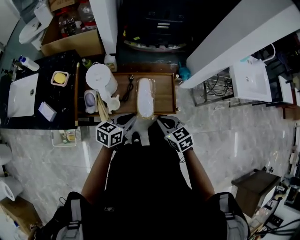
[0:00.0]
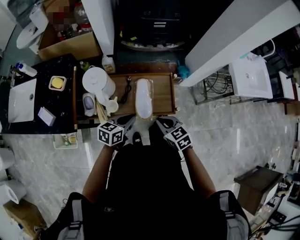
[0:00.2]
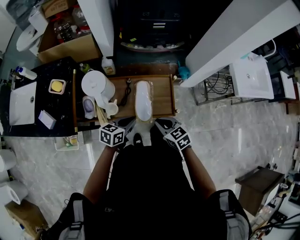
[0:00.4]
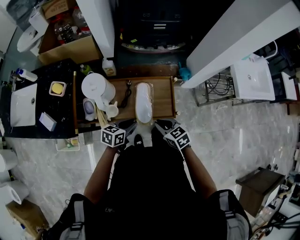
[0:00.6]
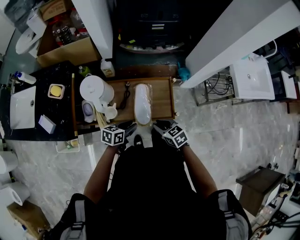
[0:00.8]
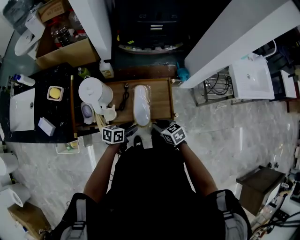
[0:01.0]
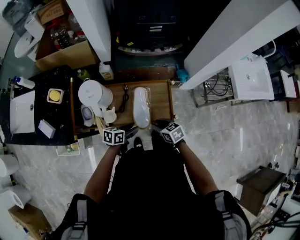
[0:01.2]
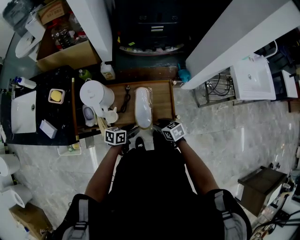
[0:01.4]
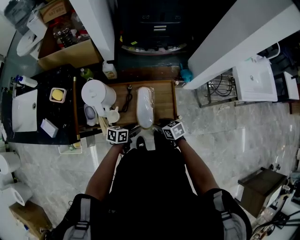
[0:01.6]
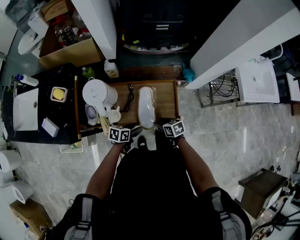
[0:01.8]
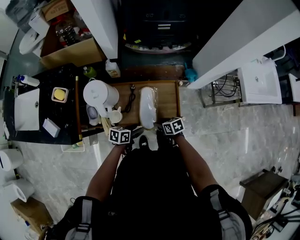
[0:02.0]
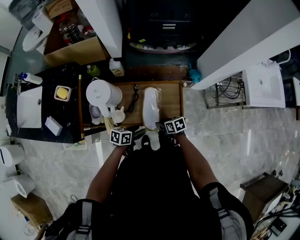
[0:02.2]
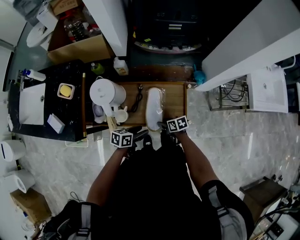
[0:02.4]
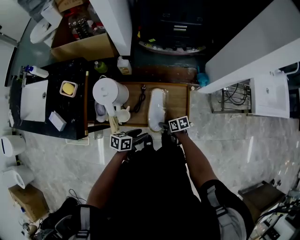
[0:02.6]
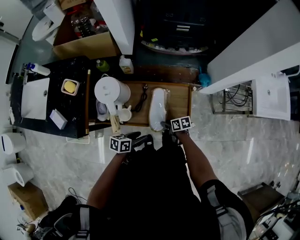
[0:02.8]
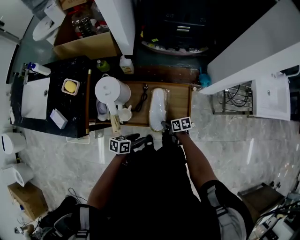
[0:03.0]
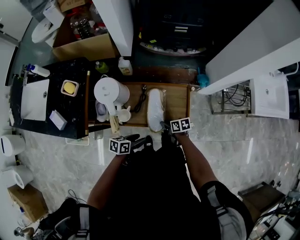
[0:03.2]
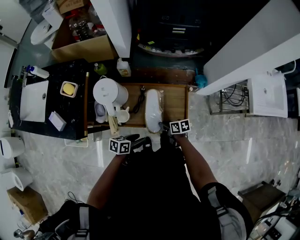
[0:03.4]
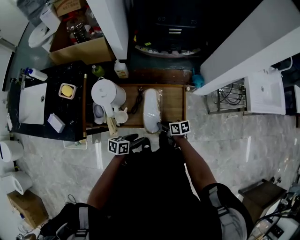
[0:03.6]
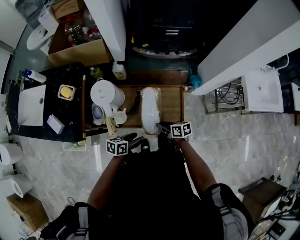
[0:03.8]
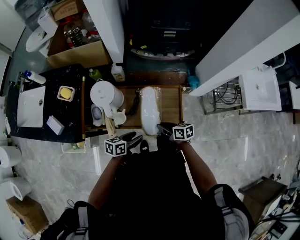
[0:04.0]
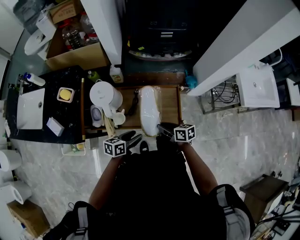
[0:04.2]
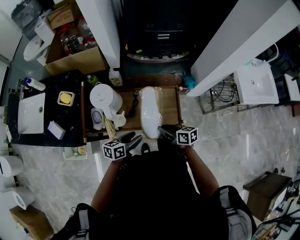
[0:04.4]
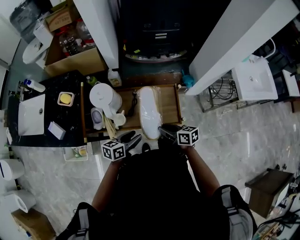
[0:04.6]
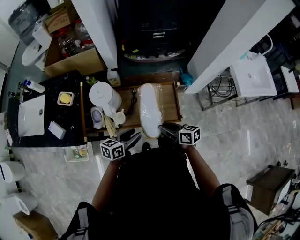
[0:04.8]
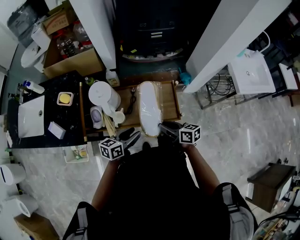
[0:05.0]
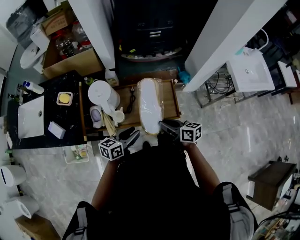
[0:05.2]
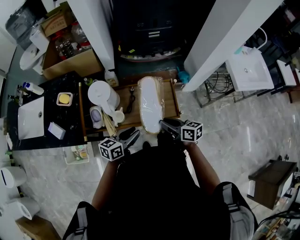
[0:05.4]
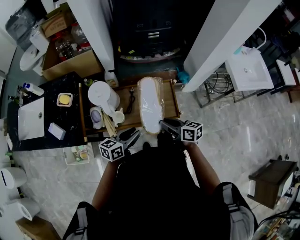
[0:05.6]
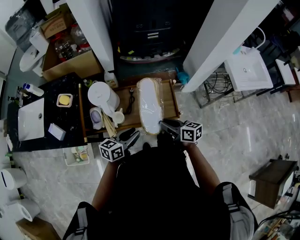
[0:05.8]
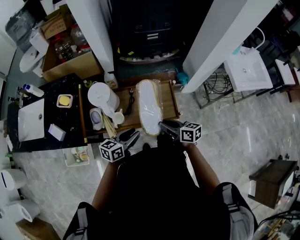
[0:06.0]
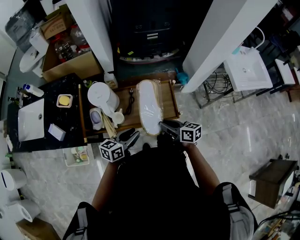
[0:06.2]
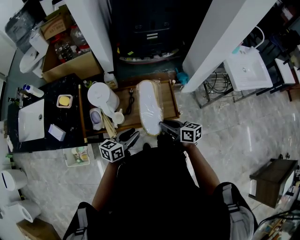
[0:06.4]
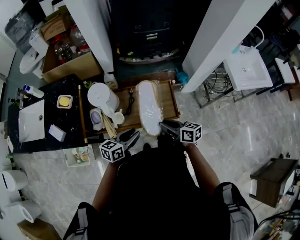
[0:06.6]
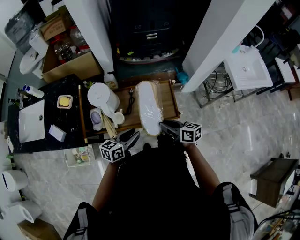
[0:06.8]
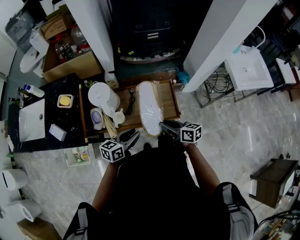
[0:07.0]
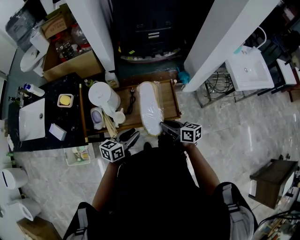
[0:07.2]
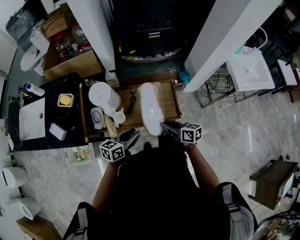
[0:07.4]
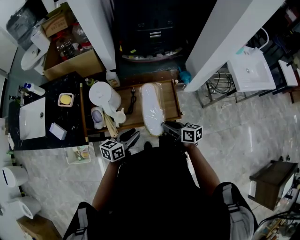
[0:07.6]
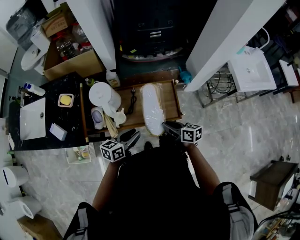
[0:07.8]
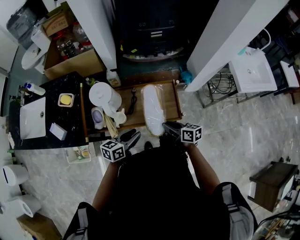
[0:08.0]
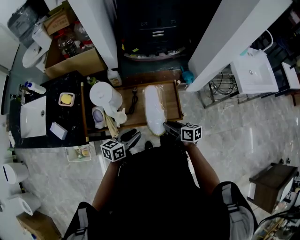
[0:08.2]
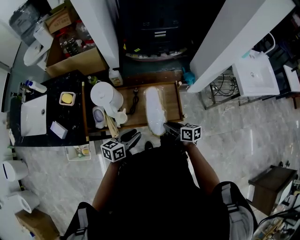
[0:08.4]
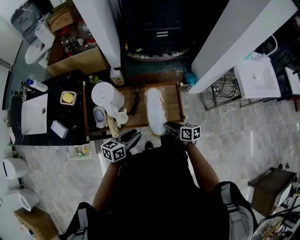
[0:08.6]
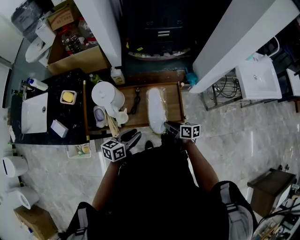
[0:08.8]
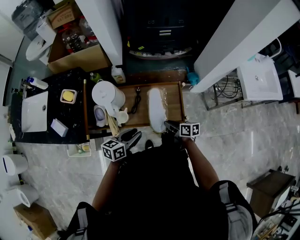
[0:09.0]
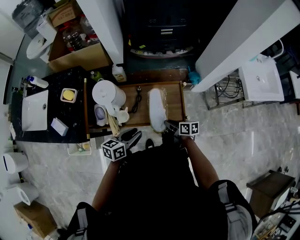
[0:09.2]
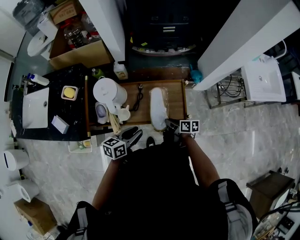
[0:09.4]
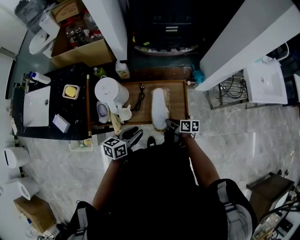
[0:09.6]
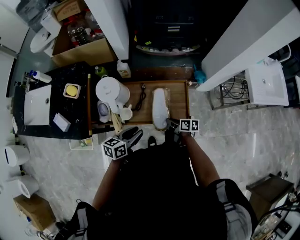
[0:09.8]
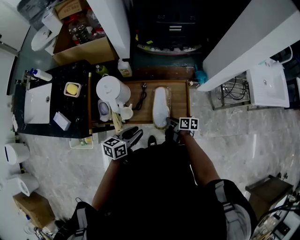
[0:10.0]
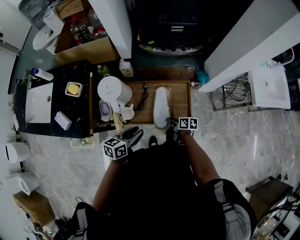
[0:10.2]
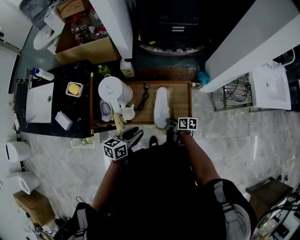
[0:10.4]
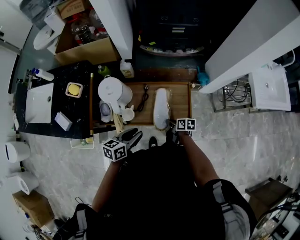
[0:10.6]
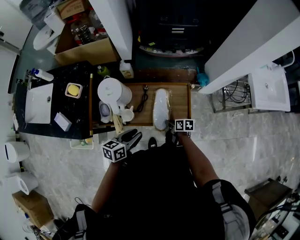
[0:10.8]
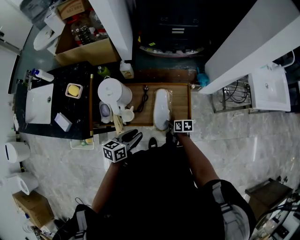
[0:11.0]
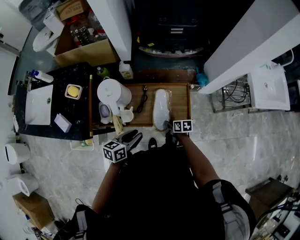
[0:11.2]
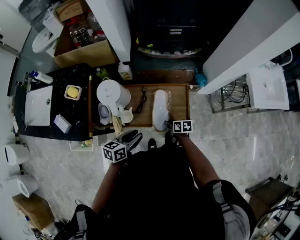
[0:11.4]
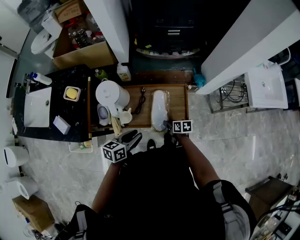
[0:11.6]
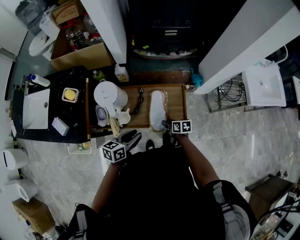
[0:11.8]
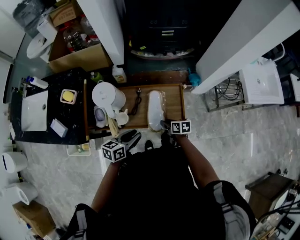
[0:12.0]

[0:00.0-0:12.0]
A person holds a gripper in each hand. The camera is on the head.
0:00.0 to 0:01.6: The grippers both shift downward by about 15 cm. The left gripper changes its angle by some 20 degrees, and opens. The right gripper rotates approximately 20 degrees, and opens its fingers.
0:01.6 to 0:03.0: The left gripper shifts by approximately 5 cm. The right gripper is displaced downward by approximately 10 cm, and turns by roughly 20 degrees.
0:03.0 to 0:04.4: The left gripper heads upward, covering roughly 10 cm. The right gripper moves upward, approximately 15 cm, and changes its angle by roughly 30 degrees.
0:04.4 to 0:06.0: The grippers both shift upward by approximately 5 cm. The left gripper closes.
0:06.0 to 0:07.6: There are only small adjustments of the grippers.
0:07.6 to 0:09.0: The right gripper heads downward, covering approximately 10 cm.
0:09.0 to 0:10.4: The right gripper shifts roughly 10 cm downward.
0:10.4 to 0:12.0: The right gripper opens its fingers.

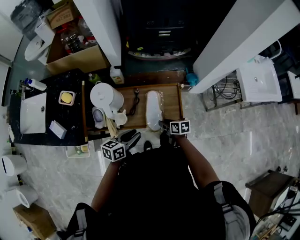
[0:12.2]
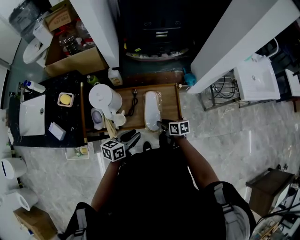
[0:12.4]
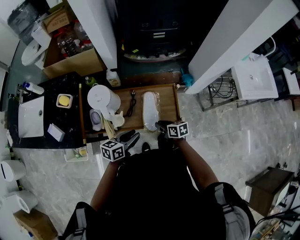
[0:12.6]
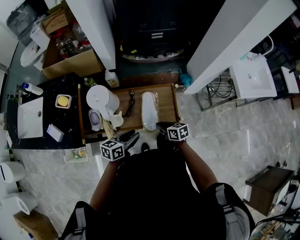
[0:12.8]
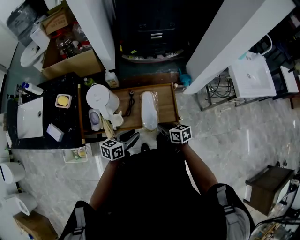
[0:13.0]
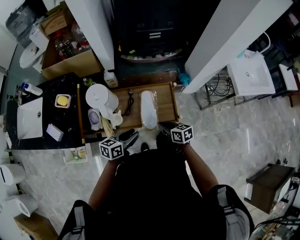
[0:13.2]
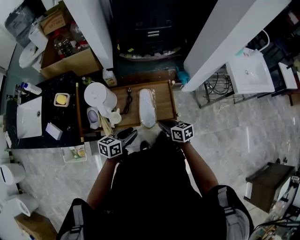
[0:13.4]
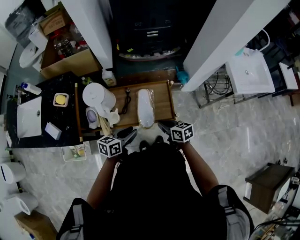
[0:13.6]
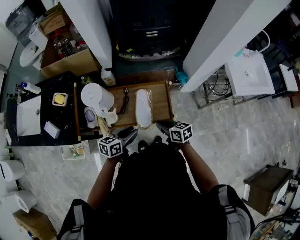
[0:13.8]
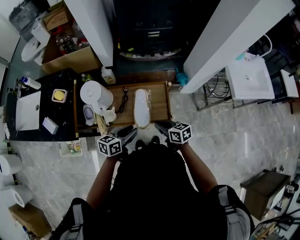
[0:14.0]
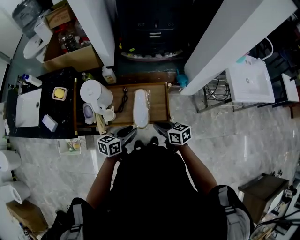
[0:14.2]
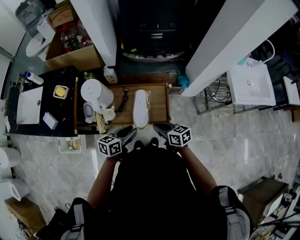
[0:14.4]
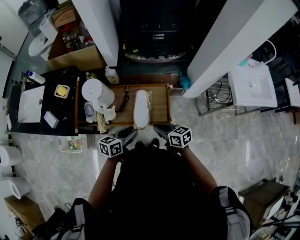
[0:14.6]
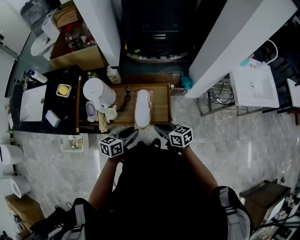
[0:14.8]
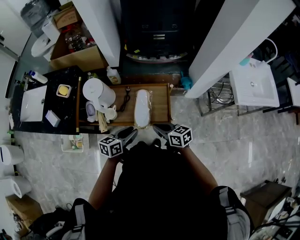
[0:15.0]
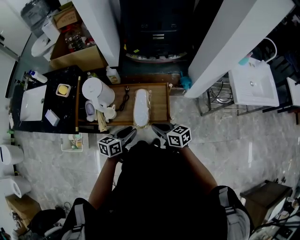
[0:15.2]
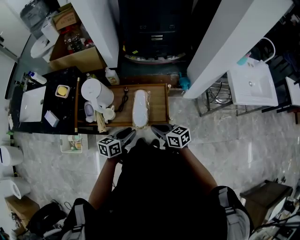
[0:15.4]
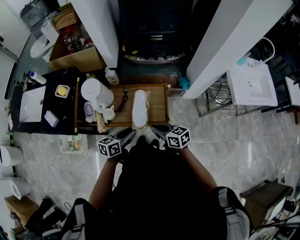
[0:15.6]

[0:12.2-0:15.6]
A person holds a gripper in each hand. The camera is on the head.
0:12.2 to 0:13.8: The right gripper is displaced upward by about 10 cm, and closes.
0:13.8 to 0:15.6: The grippers make only small movements.

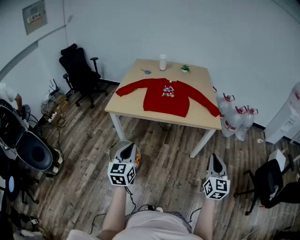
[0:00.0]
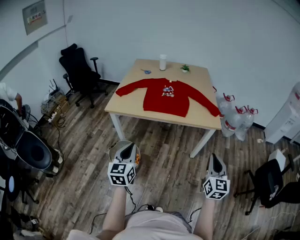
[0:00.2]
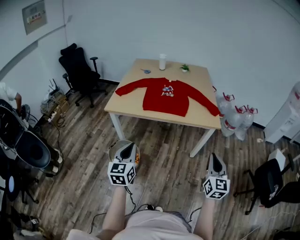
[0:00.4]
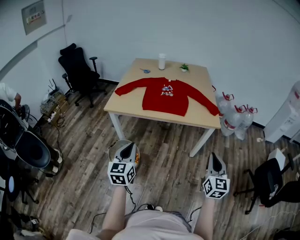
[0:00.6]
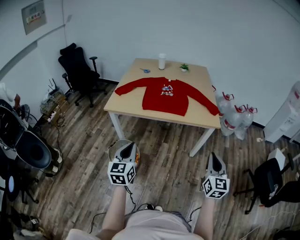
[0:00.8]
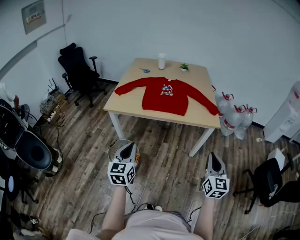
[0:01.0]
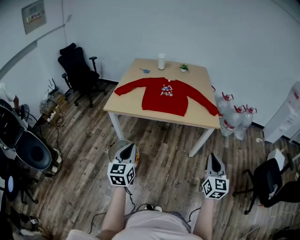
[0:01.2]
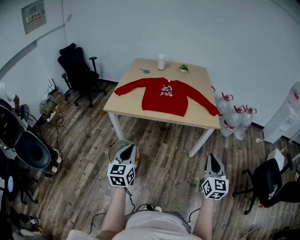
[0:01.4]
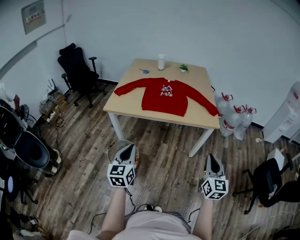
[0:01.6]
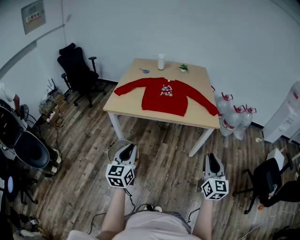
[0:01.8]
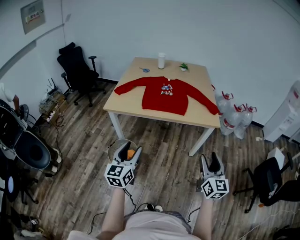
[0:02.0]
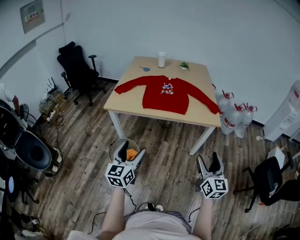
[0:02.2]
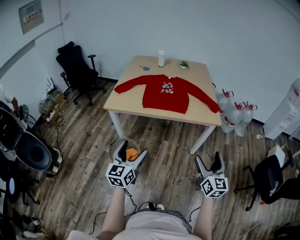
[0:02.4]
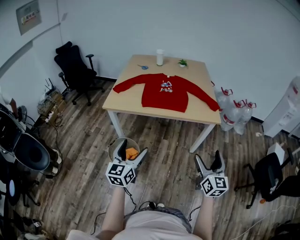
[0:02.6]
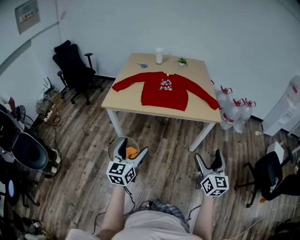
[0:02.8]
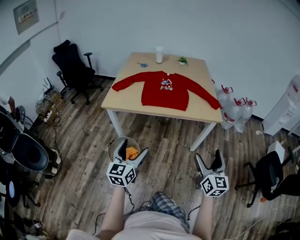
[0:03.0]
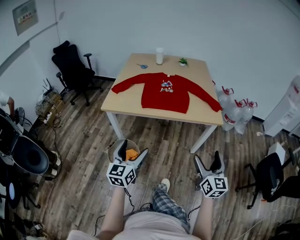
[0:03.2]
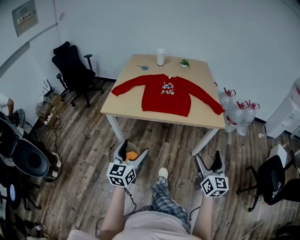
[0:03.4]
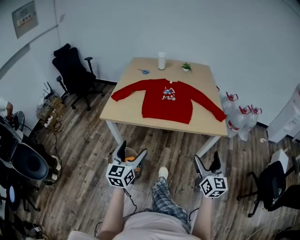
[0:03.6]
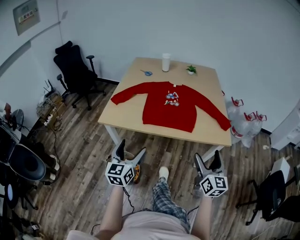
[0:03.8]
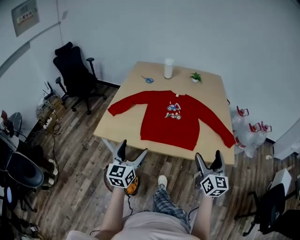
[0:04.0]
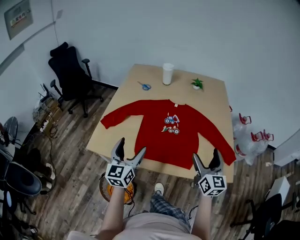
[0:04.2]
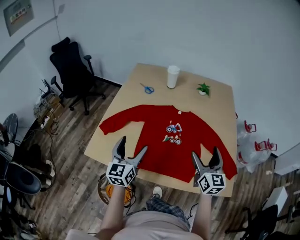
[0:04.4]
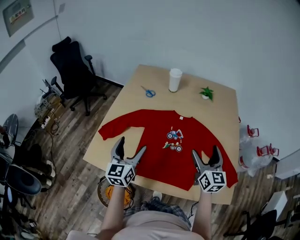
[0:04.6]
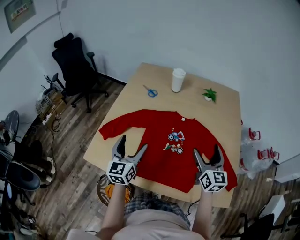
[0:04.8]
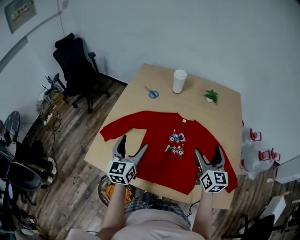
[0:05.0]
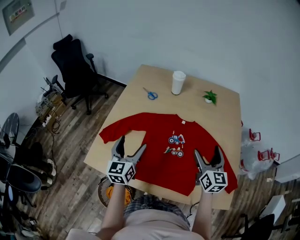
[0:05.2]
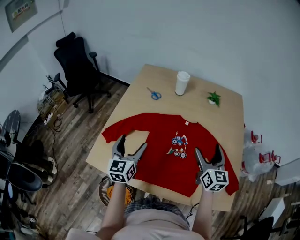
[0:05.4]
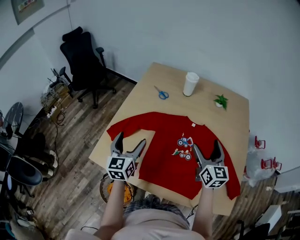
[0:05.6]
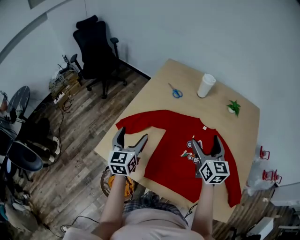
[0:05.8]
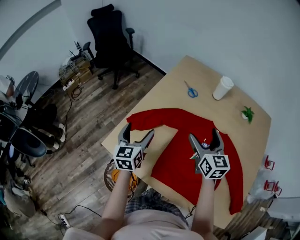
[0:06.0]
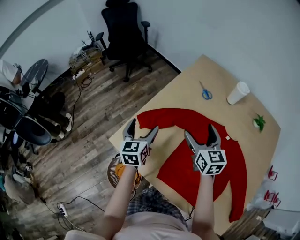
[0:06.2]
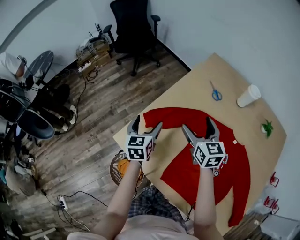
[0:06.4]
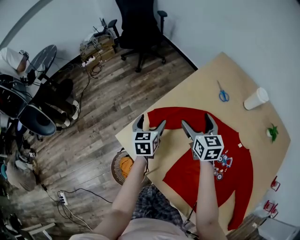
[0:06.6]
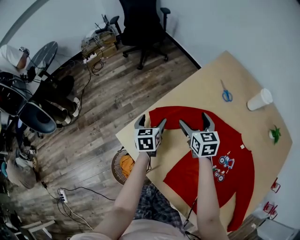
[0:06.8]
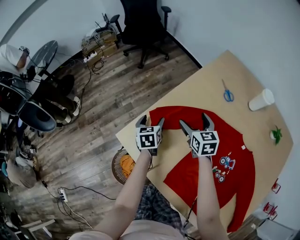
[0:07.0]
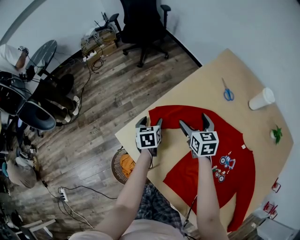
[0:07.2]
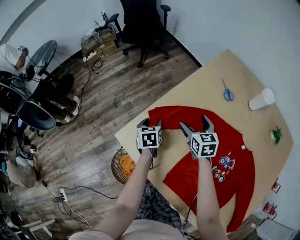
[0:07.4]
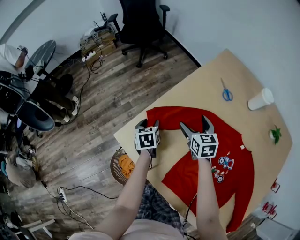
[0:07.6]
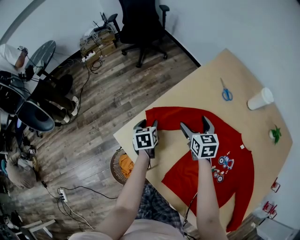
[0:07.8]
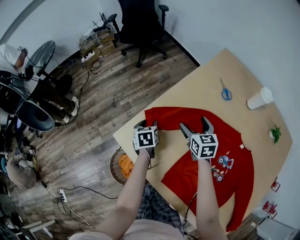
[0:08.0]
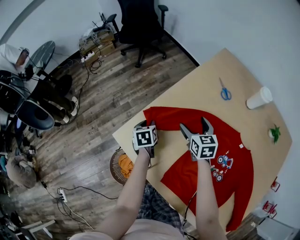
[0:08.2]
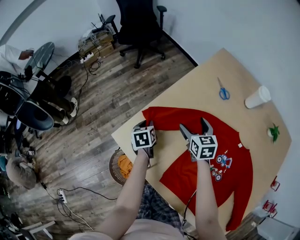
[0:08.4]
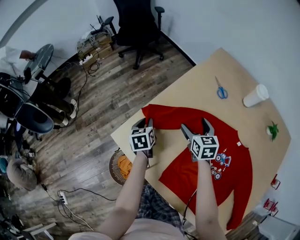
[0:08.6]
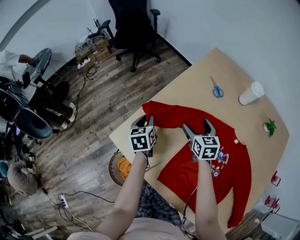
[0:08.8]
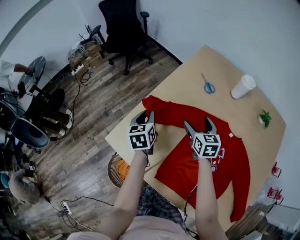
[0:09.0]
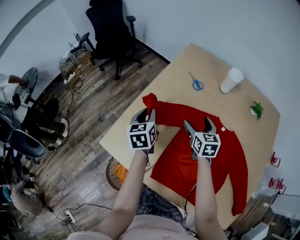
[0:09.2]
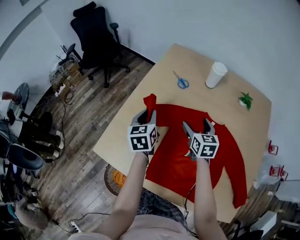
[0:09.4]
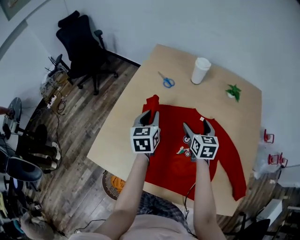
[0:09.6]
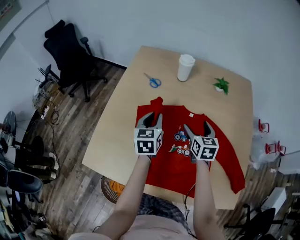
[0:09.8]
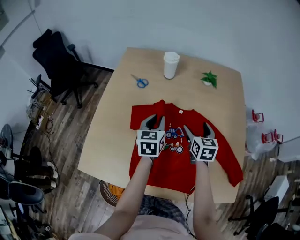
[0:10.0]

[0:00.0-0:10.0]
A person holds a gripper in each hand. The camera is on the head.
0:00.0 to 0:01.4: Both grippers stay about where they are.
0:01.4 to 0:02.8: The right gripper opens up, while the left gripper opens.
0:02.8 to 0:04.2: The two grippers travel together, forward, roughly 40 cm.
0:04.2 to 0:05.8: The two grippers go roughly 25 cm forward and to the left. The left gripper rotates approximately 20 degrees. Meanwhile the right gripper swivels roughly 20 degrees.
0:05.8 to 0:07.2: The right gripper ends up roughly 35 cm from where it was, and turns by approximately 40 degrees, while the left gripper is displaced downward by some 20 cm, and rotates approximately 40 degrees.
0:07.2 to 0:08.6: The left gripper closes up.
0:08.6 to 0:10.0: The right gripper ends up approximately 35 cm from where it was, and turns by approximately 40 degrees. The left gripper ends up about 40 cm from where it was, and swivels approximately 50 degrees.
